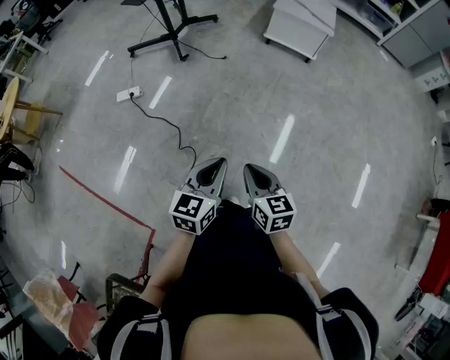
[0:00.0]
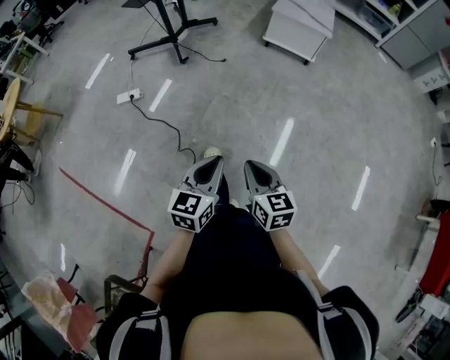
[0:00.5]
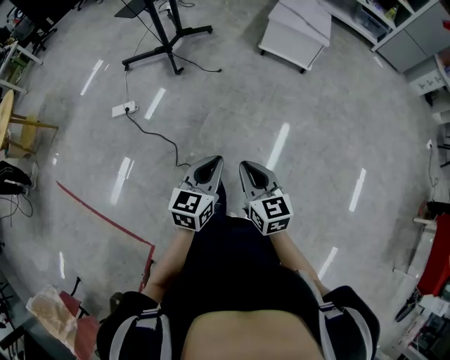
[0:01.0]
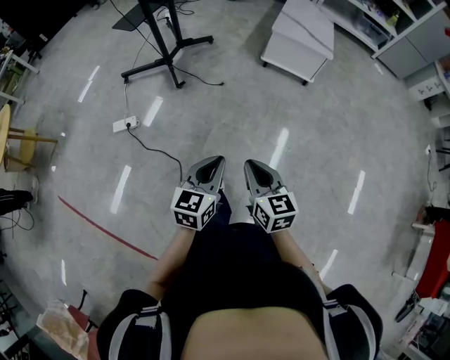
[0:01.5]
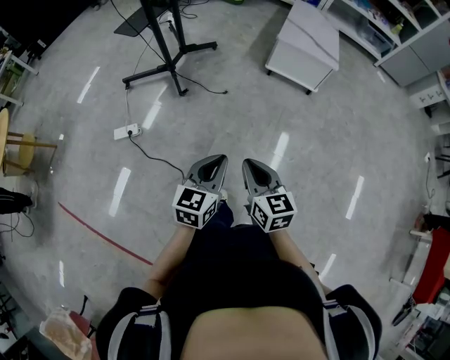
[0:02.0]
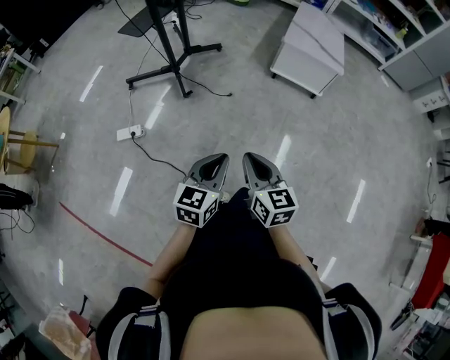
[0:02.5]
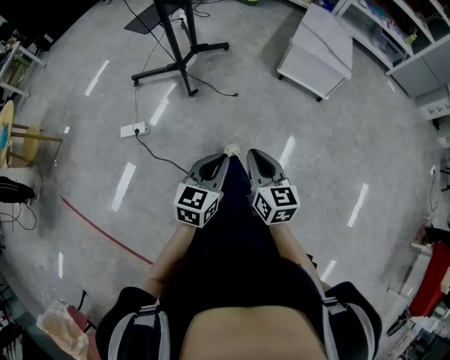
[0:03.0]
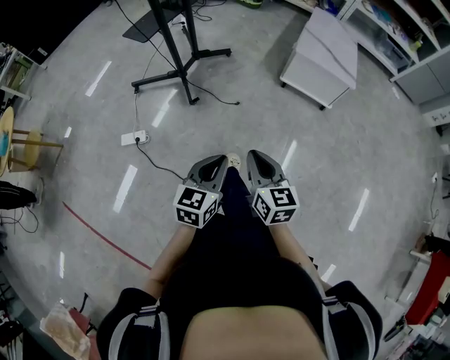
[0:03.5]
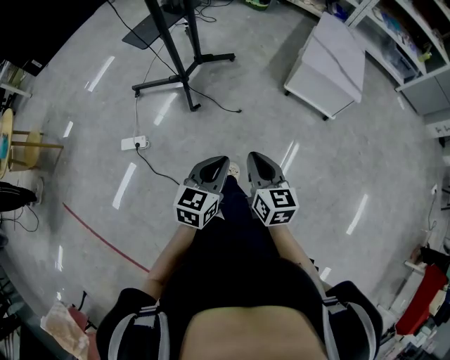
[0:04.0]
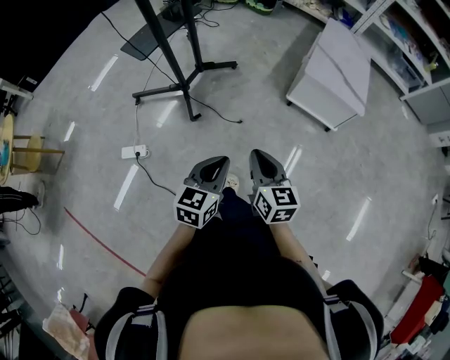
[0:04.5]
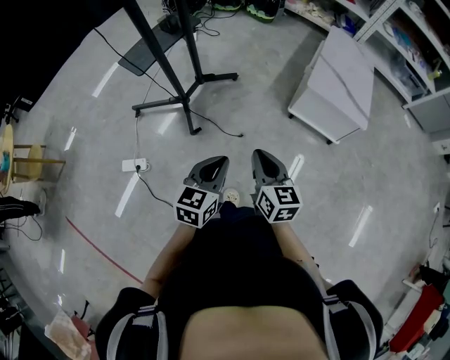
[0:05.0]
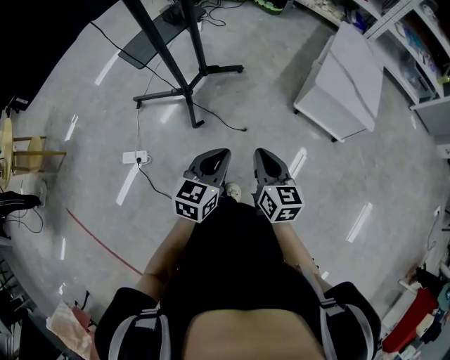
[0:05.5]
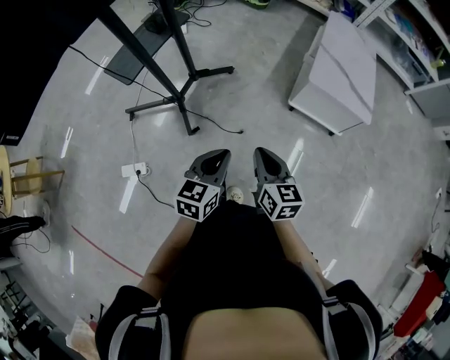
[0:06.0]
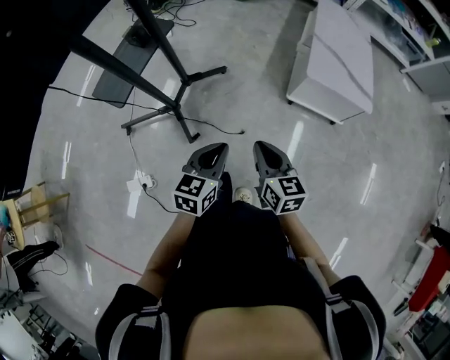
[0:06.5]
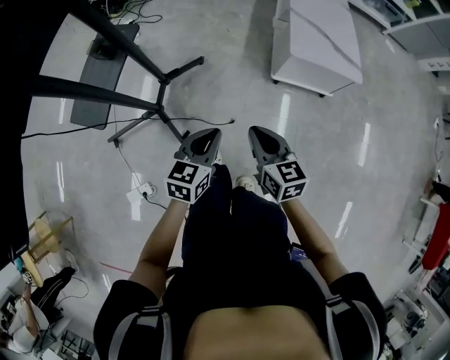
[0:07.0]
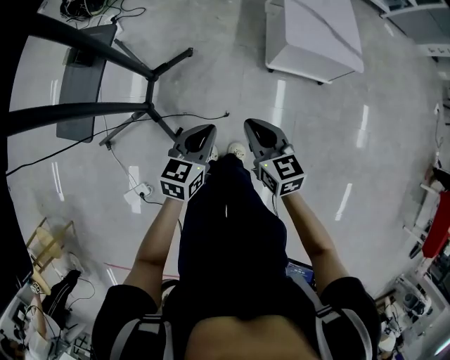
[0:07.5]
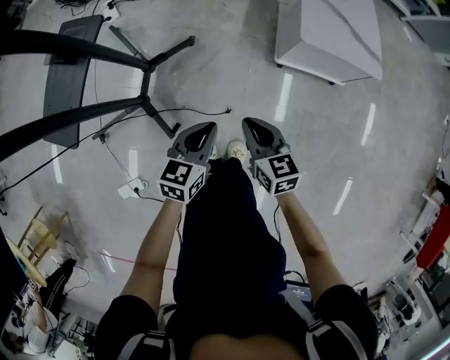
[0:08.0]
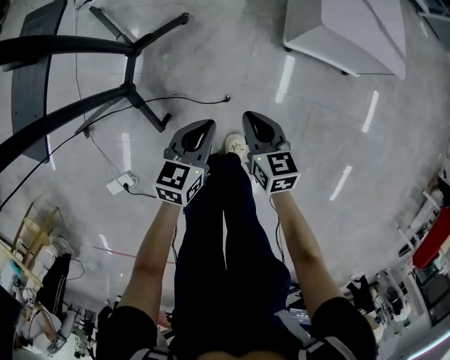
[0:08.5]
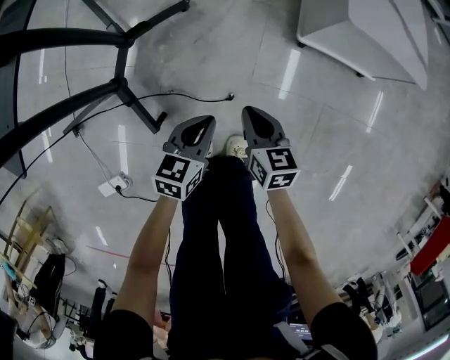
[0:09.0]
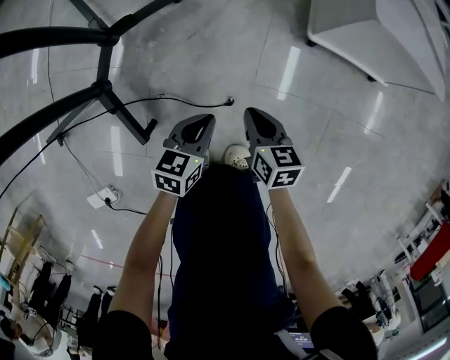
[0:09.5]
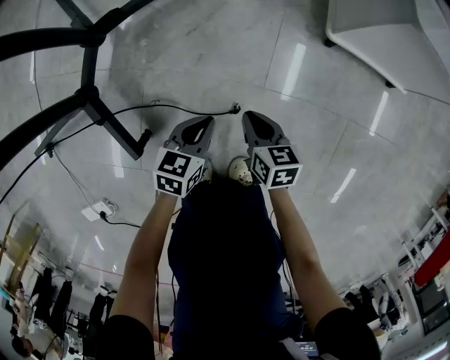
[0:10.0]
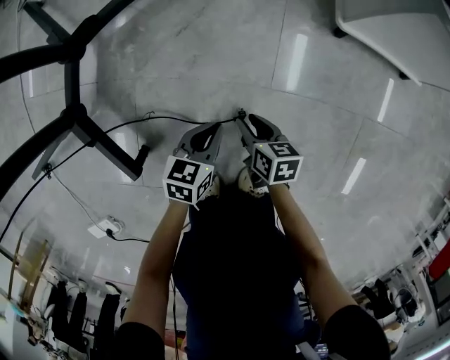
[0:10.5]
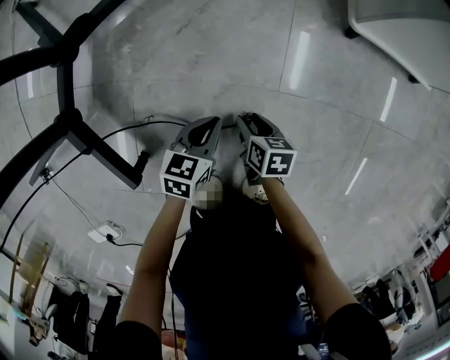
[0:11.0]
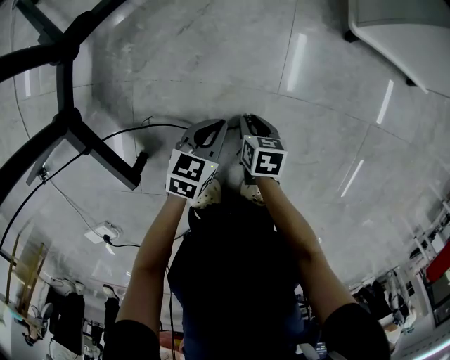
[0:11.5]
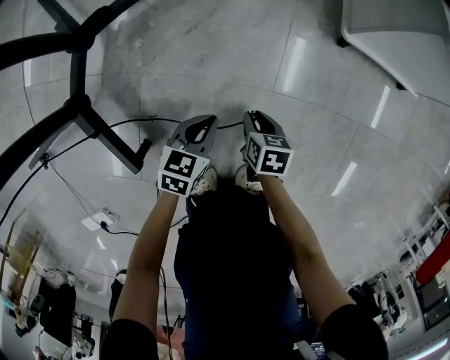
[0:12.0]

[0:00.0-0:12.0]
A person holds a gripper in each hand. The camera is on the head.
0:00.0 to 0:02.0: The two grippers go some 30 cm forward.
0:02.0 to 0:04.0: Both grippers travel together forward, about 20 cm.
0:04.0 to 0:06.0: Both grippers travel together forward, approximately 25 cm.
0:06.0 to 0:08.0: The two grippers go roughly 30 cm forward and downward.
0:08.0 to 0:10.0: The grippers both shift downward by some 50 cm.
0:10.0 to 0:12.0: The left gripper is displaced downward by some 5 cm. Meanwhile the right gripper is displaced downward by about 10 cm, and opens up.

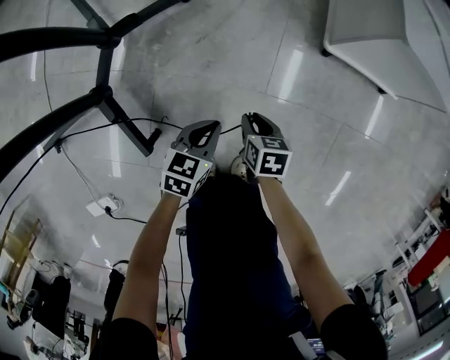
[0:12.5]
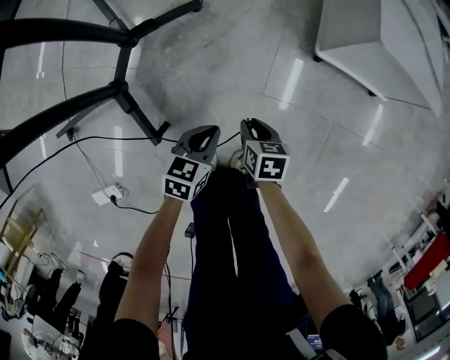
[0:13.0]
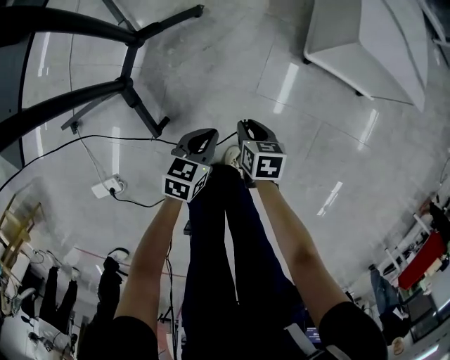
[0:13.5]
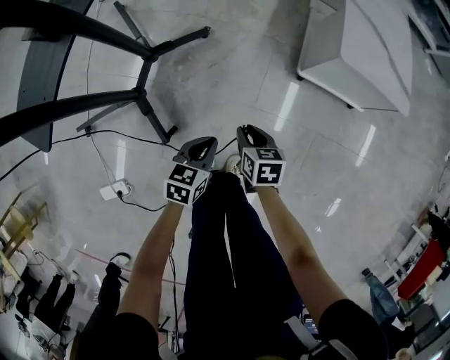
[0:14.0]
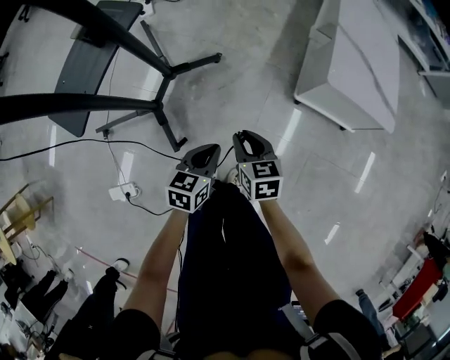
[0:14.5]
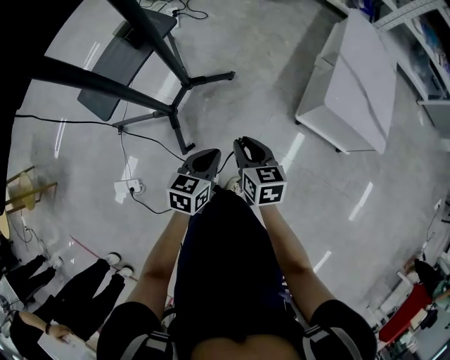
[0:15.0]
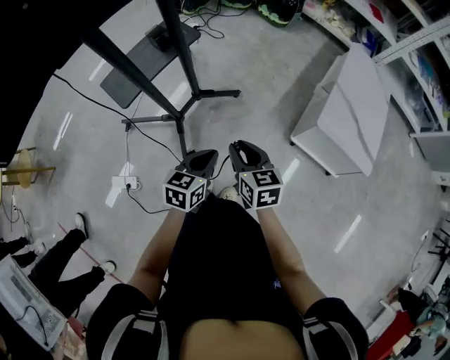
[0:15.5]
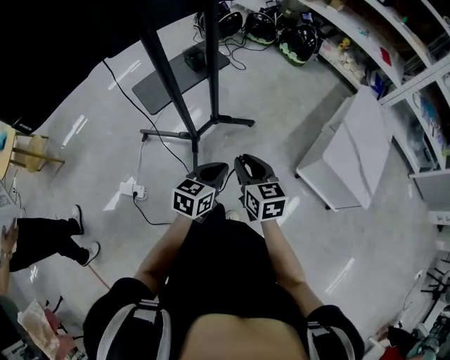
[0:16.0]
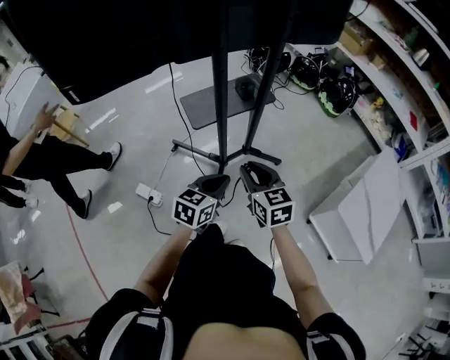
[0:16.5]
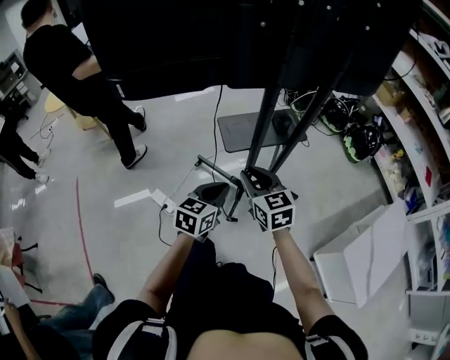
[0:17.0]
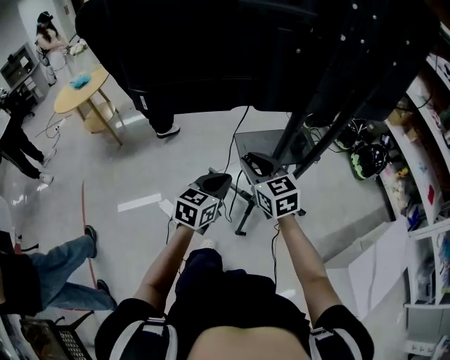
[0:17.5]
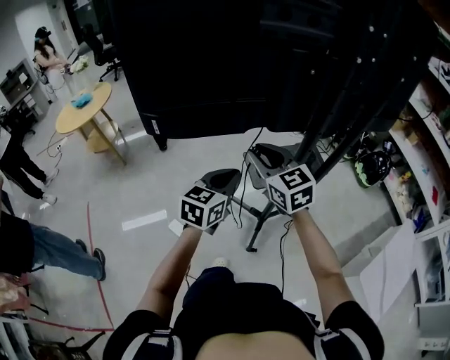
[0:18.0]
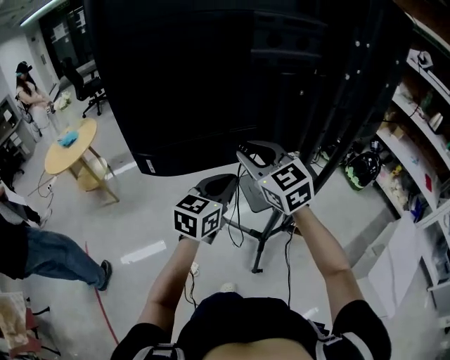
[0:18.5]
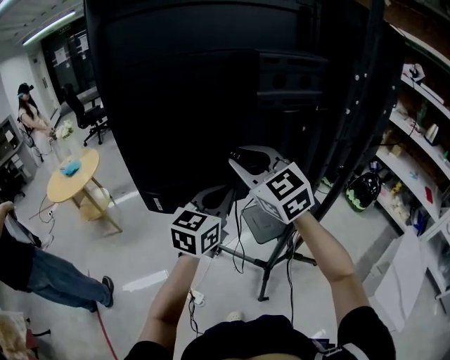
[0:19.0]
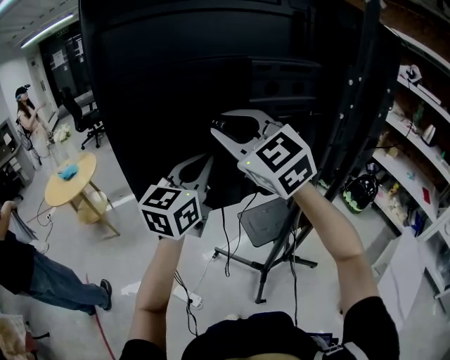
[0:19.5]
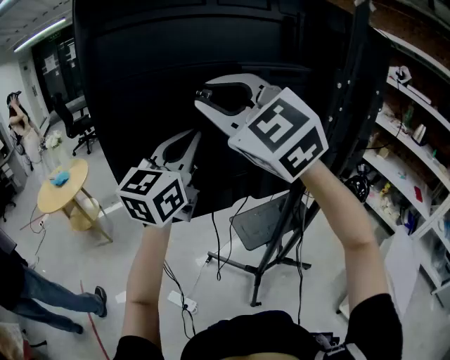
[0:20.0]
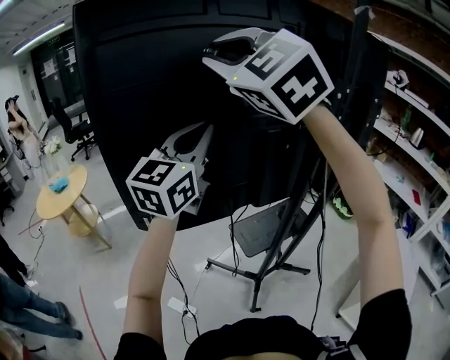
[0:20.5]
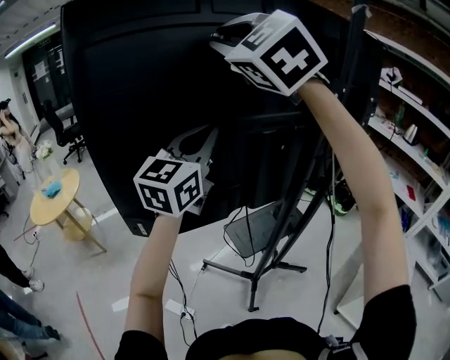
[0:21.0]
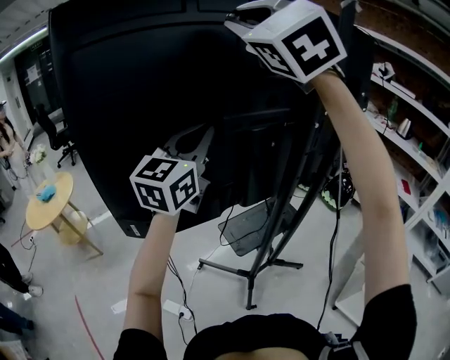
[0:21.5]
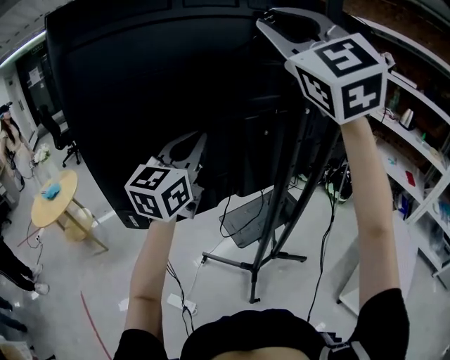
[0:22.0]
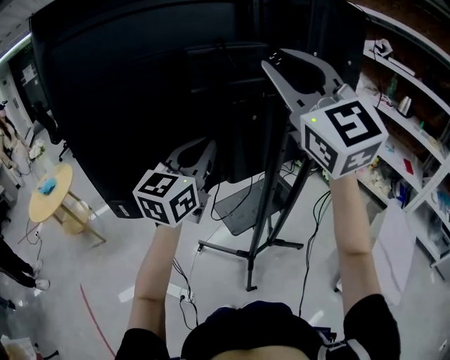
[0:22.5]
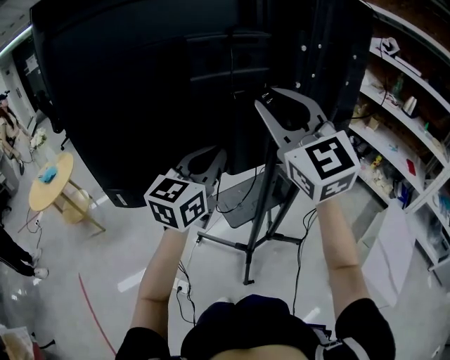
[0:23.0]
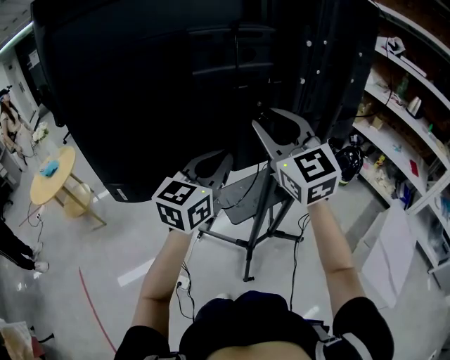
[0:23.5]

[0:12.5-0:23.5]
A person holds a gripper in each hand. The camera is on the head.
0:12.5 to 0:14.5: Both grippers move upward, about 40 cm. The right gripper turns by roughly 30 degrees.
0:14.5 to 0:16.0: The two grippers go some 25 cm upward. The right gripper swivels approximately 30 degrees.
0:16.0 to 0:18.0: Both grippers are carried roughly 40 cm. The right gripper swivels some 50 degrees. Meanwhile the left gripper rotates roughly 30 degrees.
0:18.0 to 0:20.0: Both grippers move upward, some 35 cm. The left gripper swivels about 30 degrees, while the right gripper turns by roughly 40 degrees.
0:20.0 to 0:21.5: The left gripper goes some 5 cm to the right. Meanwhile the right gripper moves upward, to the right and forward, some 20 cm, and turns by about 30 degrees.
0:21.5 to 0:23.5: The right gripper travels downward and to the right by roughly 30 cm, and changes its angle by approximately 30 degrees, while the left gripper is displaced downward and to the right by about 15 cm.

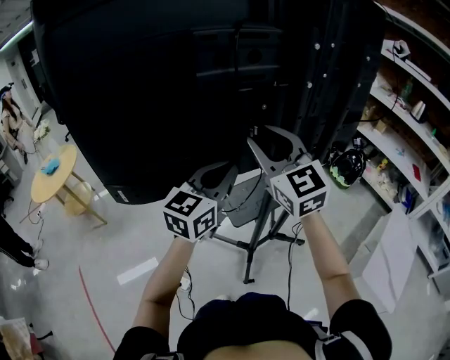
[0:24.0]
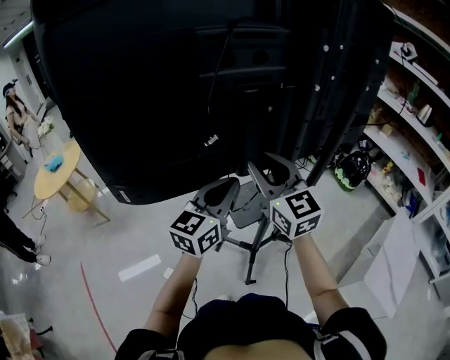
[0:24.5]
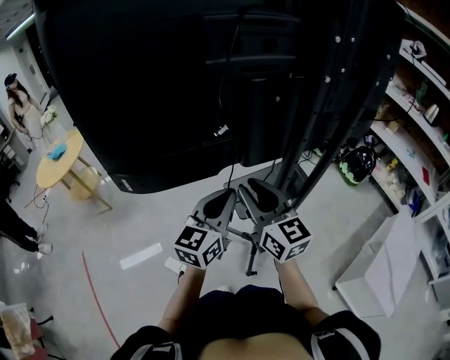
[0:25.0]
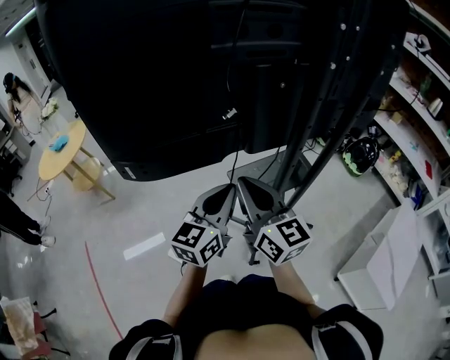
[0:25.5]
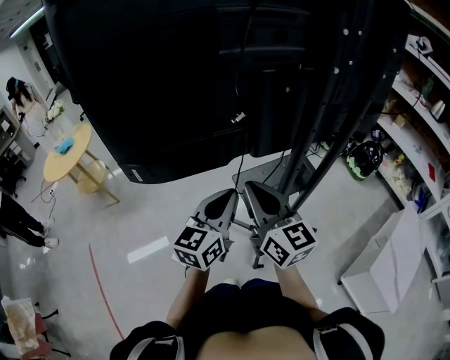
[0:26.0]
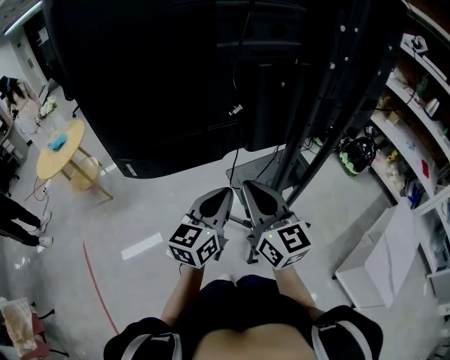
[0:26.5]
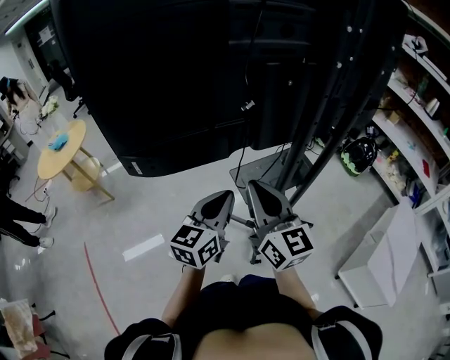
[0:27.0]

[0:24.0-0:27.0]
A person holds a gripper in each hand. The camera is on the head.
0:24.0 to 0:25.5: The left gripper shifts about 10 cm downward and backward, while the right gripper shifts roughly 15 cm downward, backward and to the left, turns by roughly 30 degrees, and closes up.
0:25.5 to 0:27.0: The grippers move only a little.

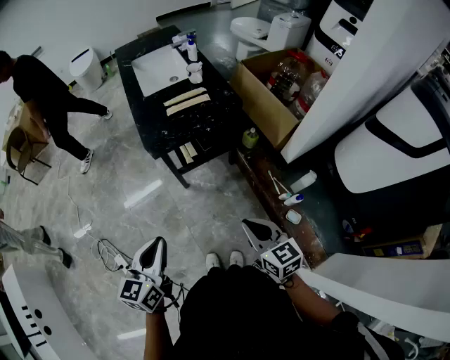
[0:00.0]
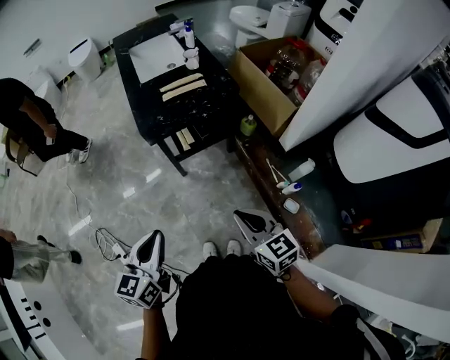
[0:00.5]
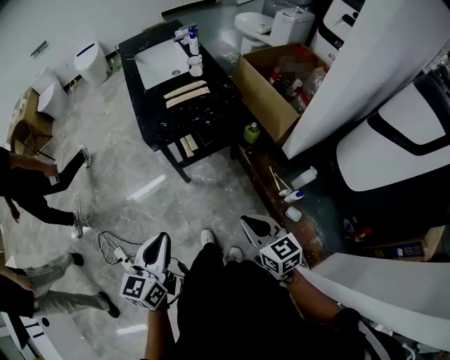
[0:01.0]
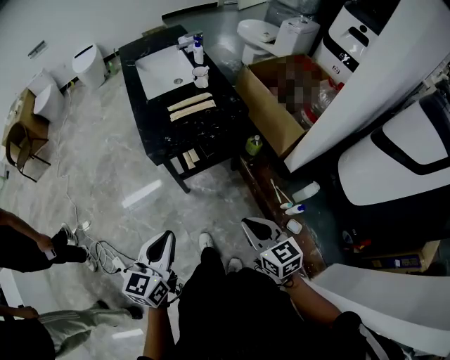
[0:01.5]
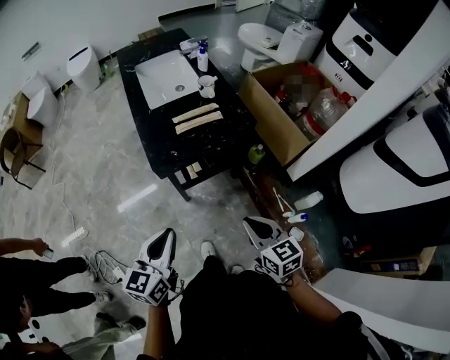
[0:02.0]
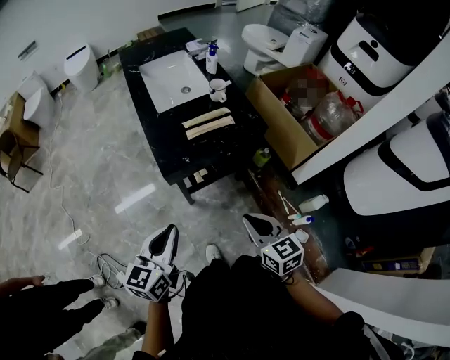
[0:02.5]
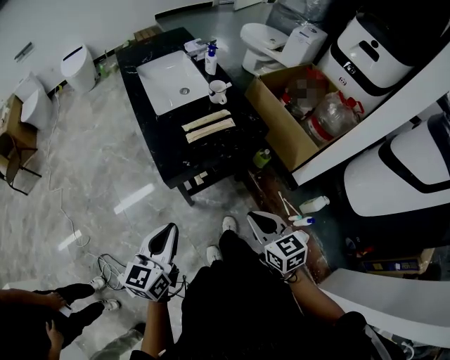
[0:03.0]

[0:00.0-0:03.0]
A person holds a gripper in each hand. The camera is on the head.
0:00.0 to 0:01.5: The grippers both shift forward by about 5 cm.
0:01.5 to 0:03.0: The grippers both shift forward and to the left by approximately 15 cm.
